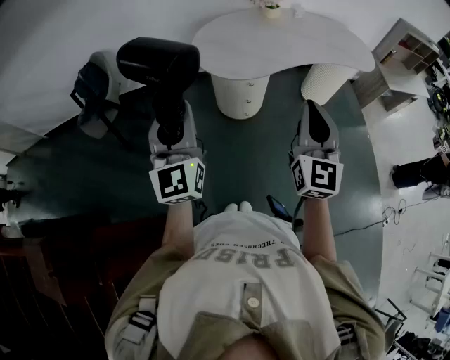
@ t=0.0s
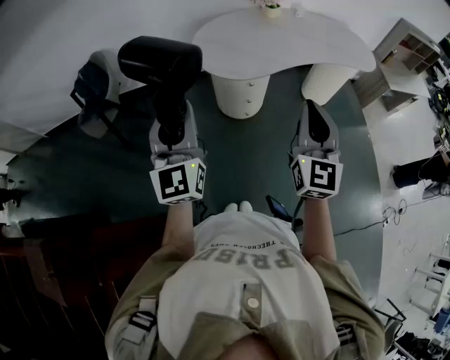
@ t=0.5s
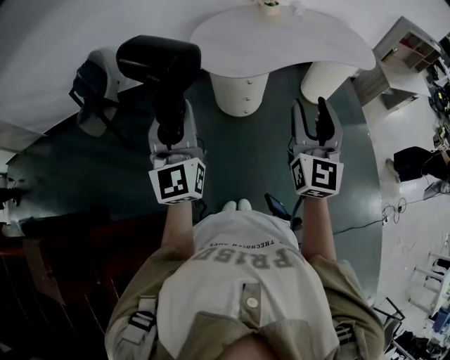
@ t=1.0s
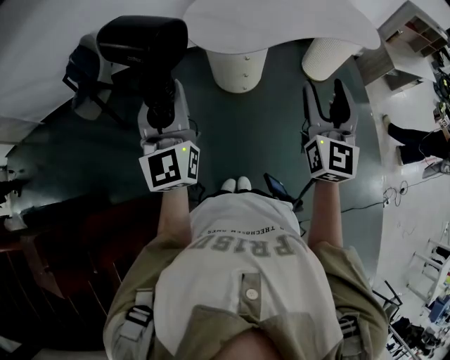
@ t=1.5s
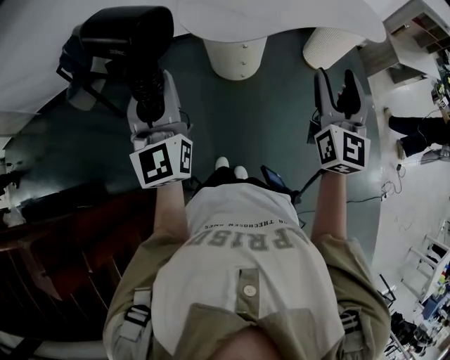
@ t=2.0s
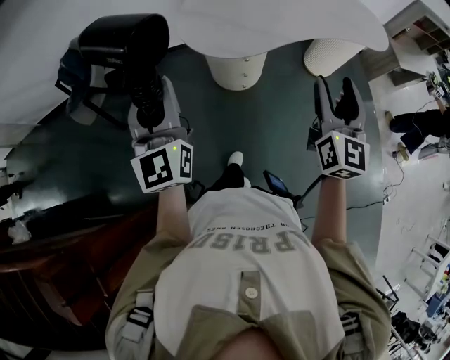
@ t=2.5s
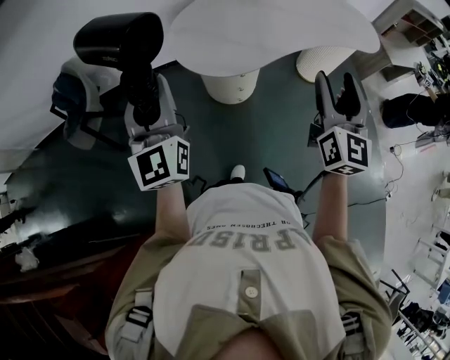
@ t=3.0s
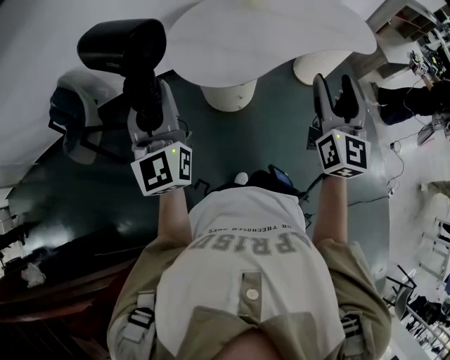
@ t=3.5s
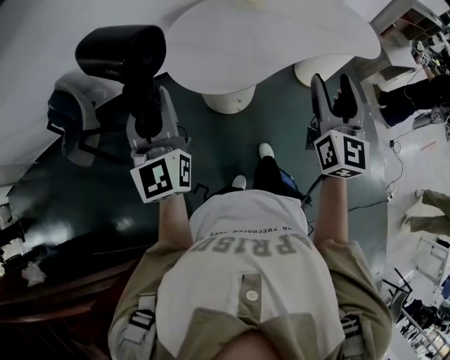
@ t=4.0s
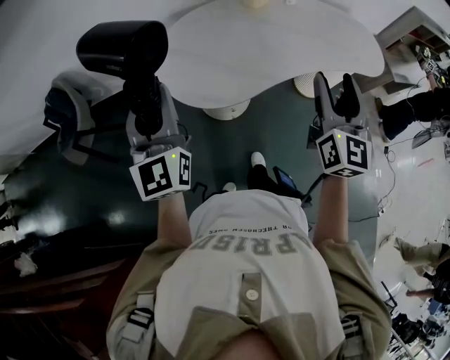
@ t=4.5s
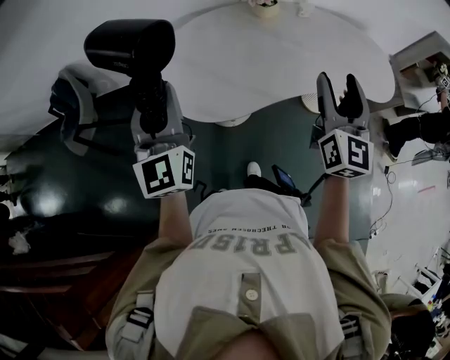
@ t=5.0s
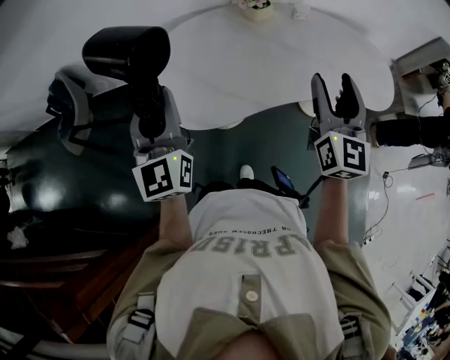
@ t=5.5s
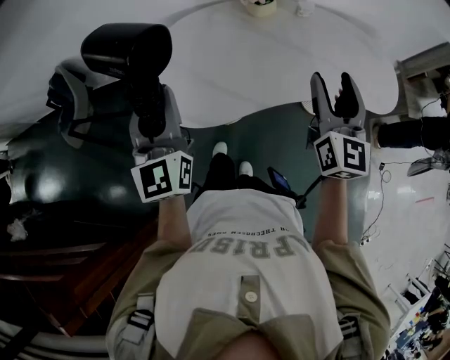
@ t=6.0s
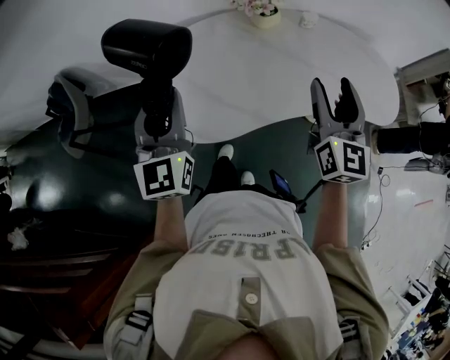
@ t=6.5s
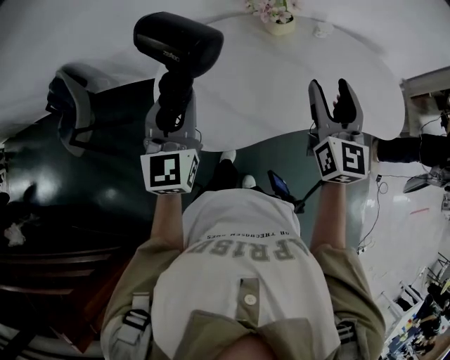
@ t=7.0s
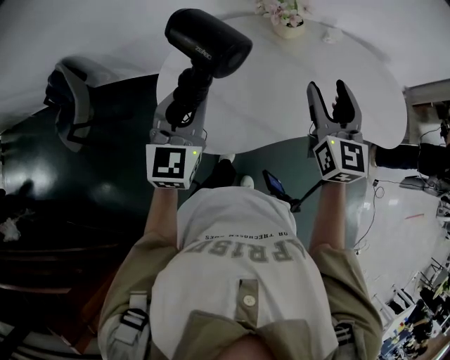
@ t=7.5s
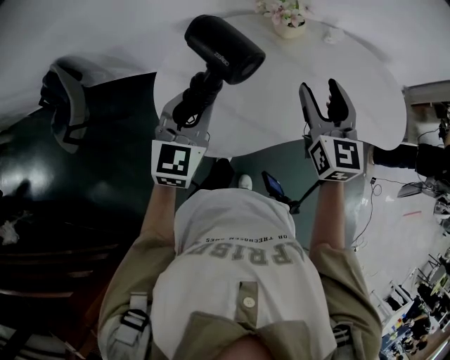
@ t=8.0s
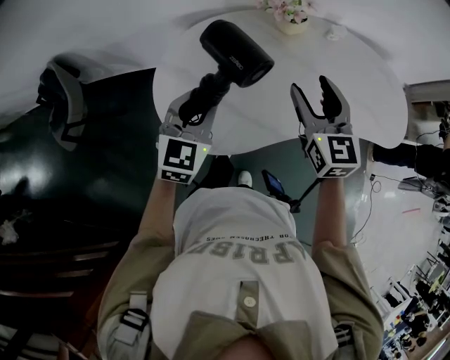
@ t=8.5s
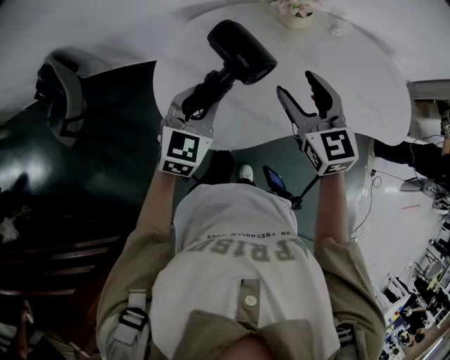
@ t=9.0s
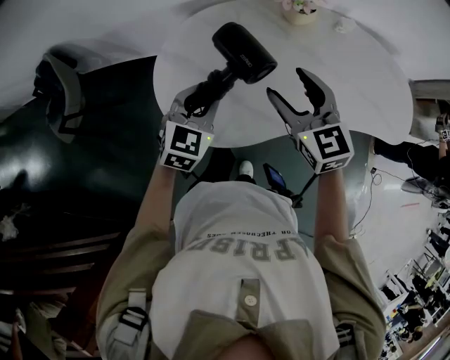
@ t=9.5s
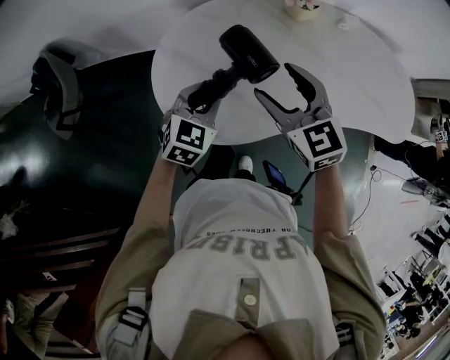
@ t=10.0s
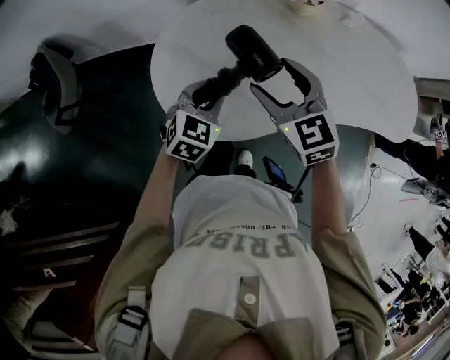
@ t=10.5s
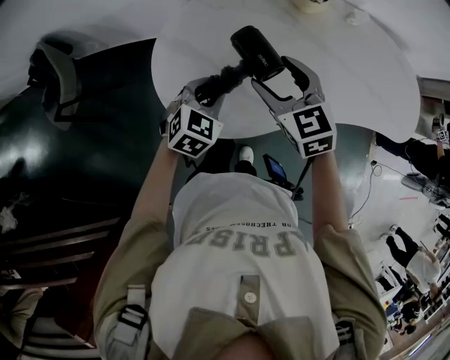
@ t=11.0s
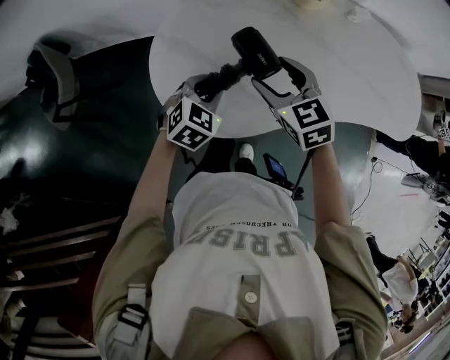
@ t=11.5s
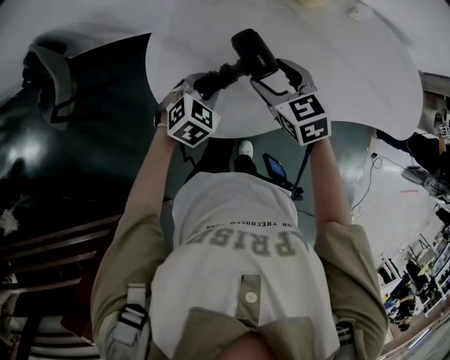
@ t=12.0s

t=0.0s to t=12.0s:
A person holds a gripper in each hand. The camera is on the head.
t=0.0s to t=2.0s: The right gripper goes about 10 cm to the right, and opens its fingers.
t=2.0s to t=4.0s: Both grippers travel together forward, roughly 20 cm.
t=4.0s to t=6.0s: The left gripper shifts approximately 20 cm to the right and forward. Meanwhile the right gripper is displaced forward and to the right by approximately 25 cm.
t=6.0s to t=8.0s: The left gripper heads forward and downward, covering about 15 cm, and turns by some 30 degrees; the right gripper shifts approximately 15 cm forward and to the left.
t=8.0s to t=10.0s: The right gripper goes about 15 cm to the left and downward, and rotates some 30 degrees, while the left gripper travels downward by roughly 15 cm, and changes its angle by about 20 degrees.
t=10.0s to t=12.0s: Both grippers move downward, approximately 10 cm.

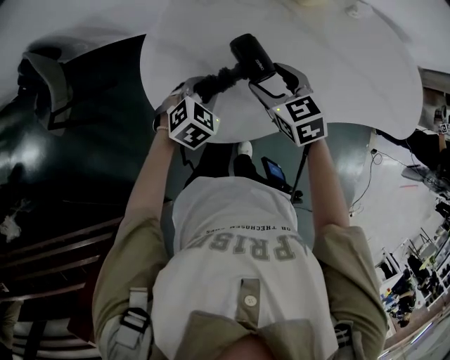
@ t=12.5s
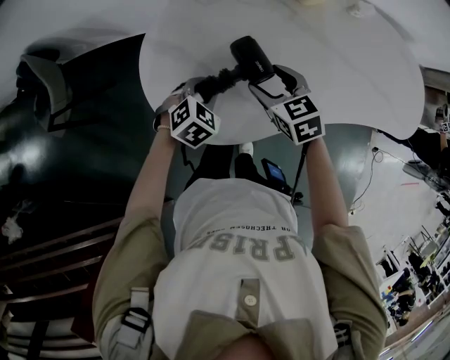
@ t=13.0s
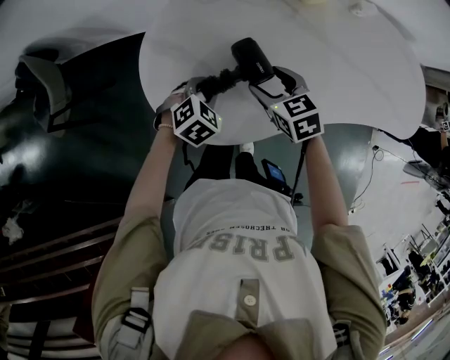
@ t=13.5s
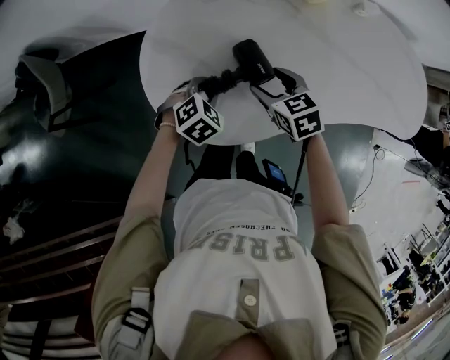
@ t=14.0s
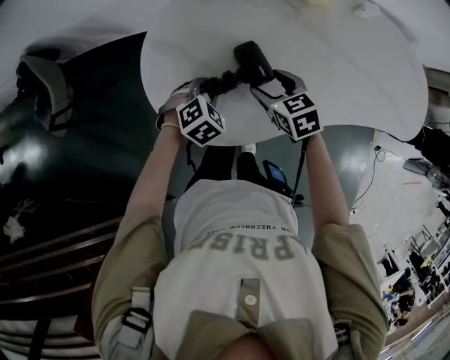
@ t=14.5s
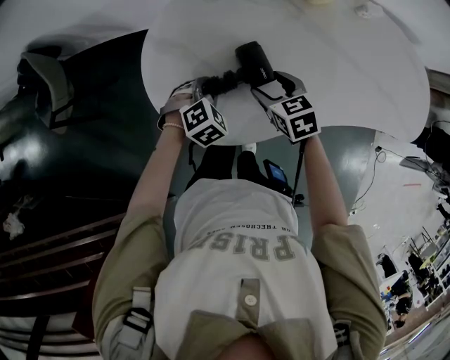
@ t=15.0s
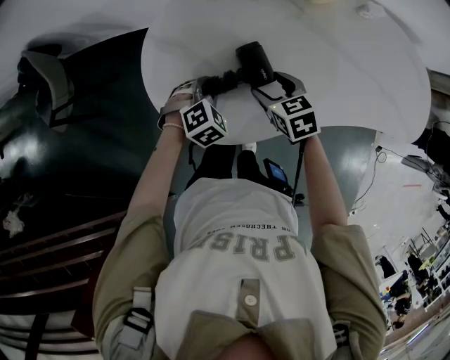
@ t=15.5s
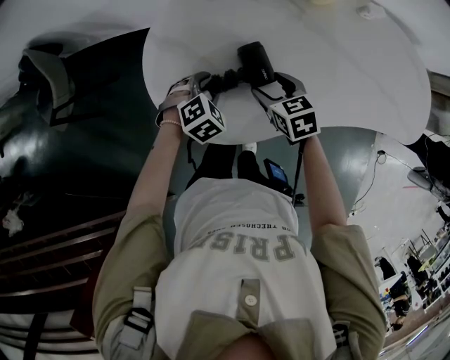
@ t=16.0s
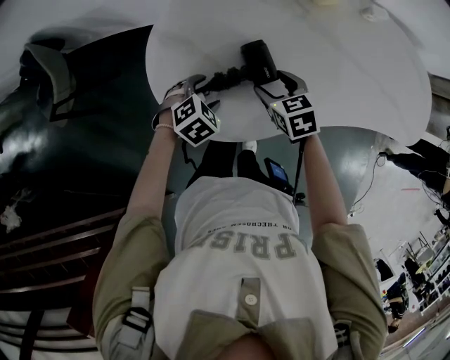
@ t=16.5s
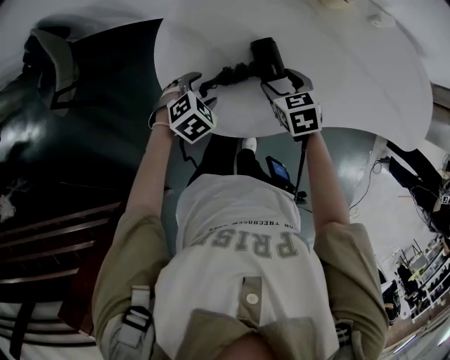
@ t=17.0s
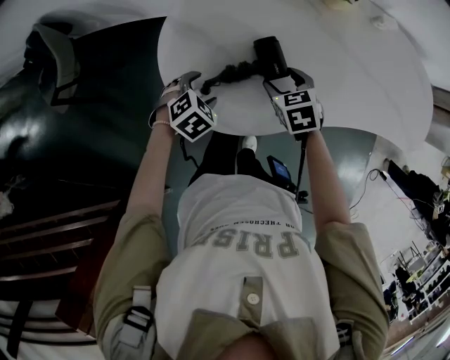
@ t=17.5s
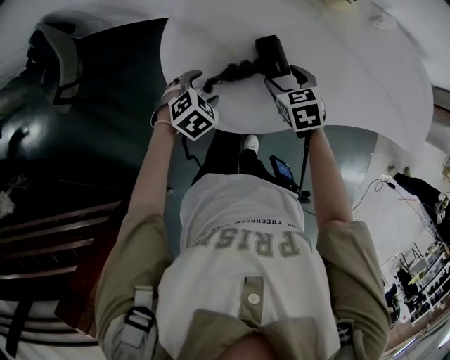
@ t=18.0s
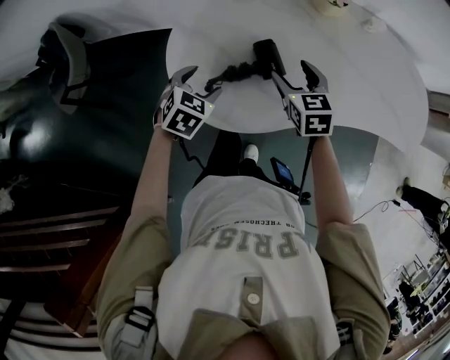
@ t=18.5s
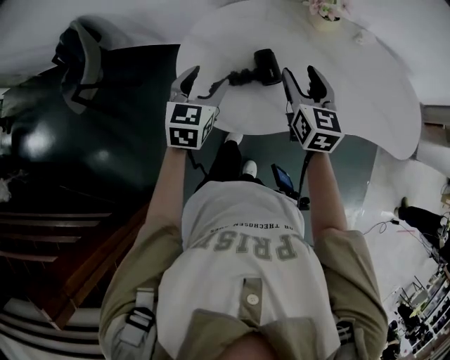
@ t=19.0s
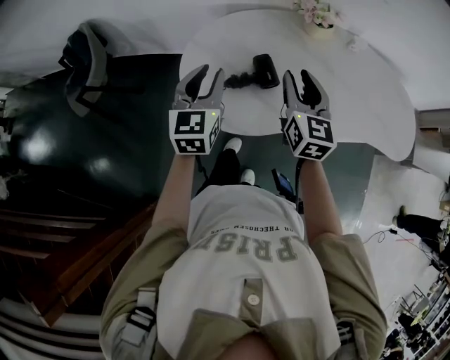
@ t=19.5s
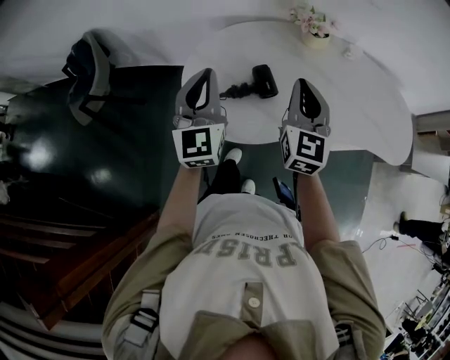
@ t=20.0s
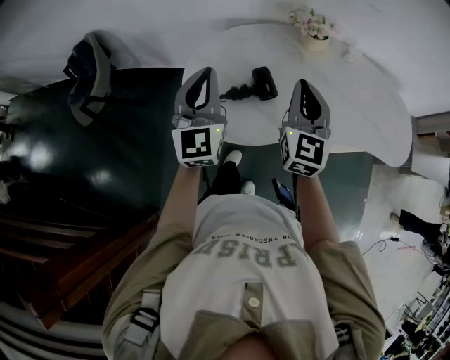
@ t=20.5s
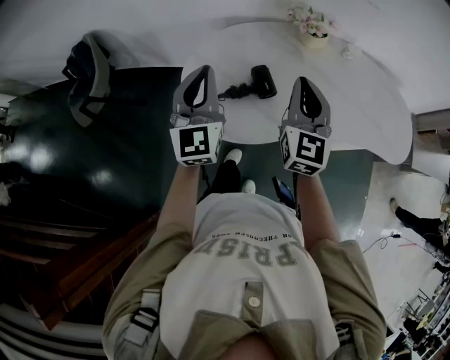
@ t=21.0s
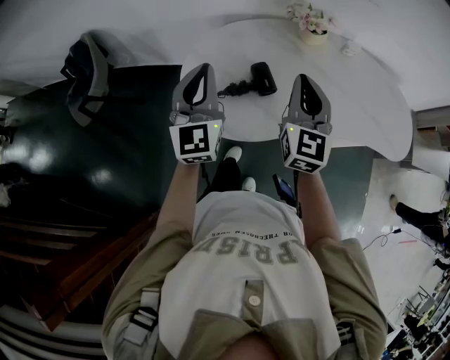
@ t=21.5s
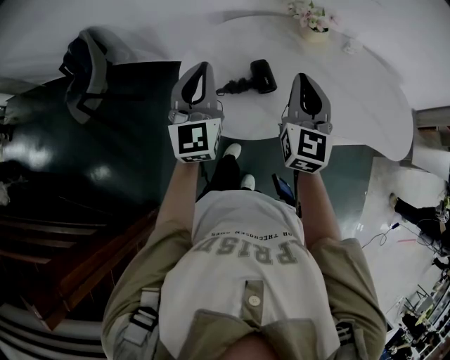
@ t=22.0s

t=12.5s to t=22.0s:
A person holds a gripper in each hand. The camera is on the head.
t=12.5s to t=14.5s: The right gripper travels downward by roughly 5 cm.
t=14.5s to t=16.5s: The left gripper opens up.
t=16.5s to t=18.0s: The grippers stay close to where they were, moving slightly.
t=18.0s to t=20.0s: The grippers both shift upward by some 30 cm. The right gripper tips its fingers upward by approximately 50 degrees, and closes its fingers; the left gripper points its fingers roughly 70 degrees further upward, and closes.
t=20.0s to t=22.0s: The grippers stay close to where they were, moving slightly.

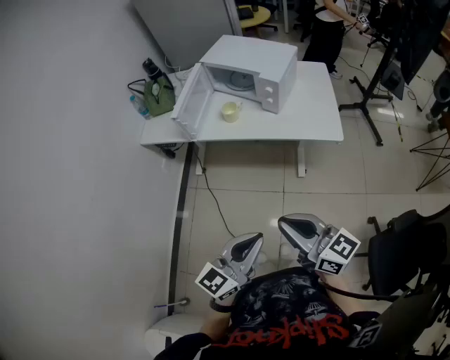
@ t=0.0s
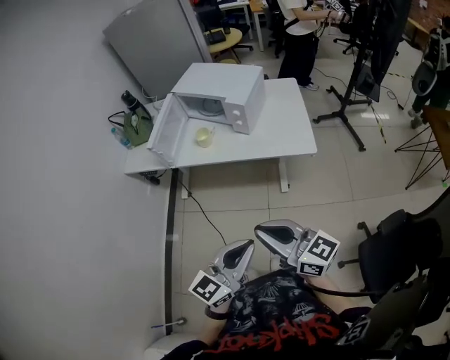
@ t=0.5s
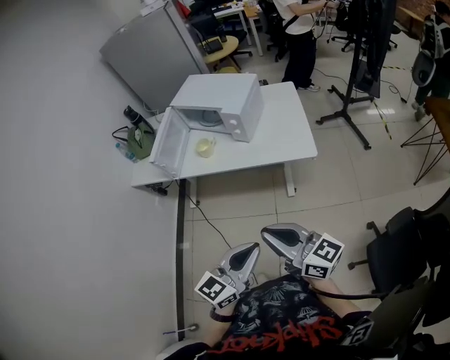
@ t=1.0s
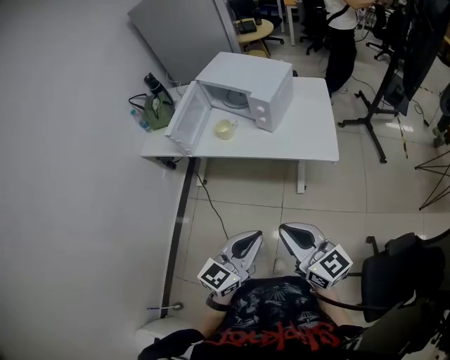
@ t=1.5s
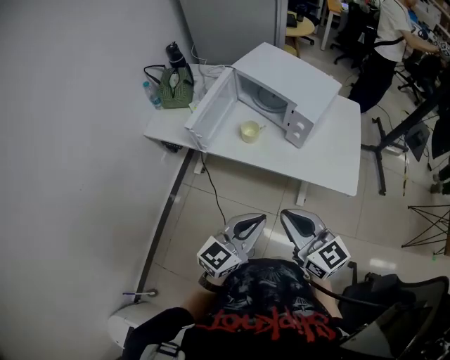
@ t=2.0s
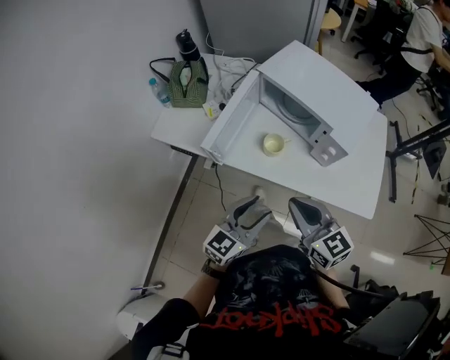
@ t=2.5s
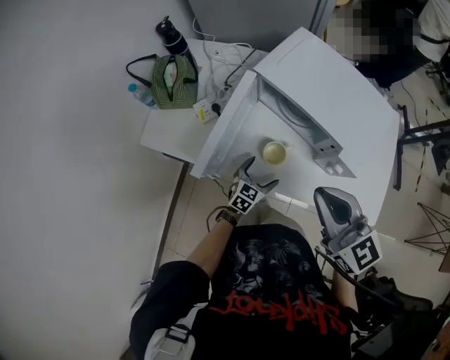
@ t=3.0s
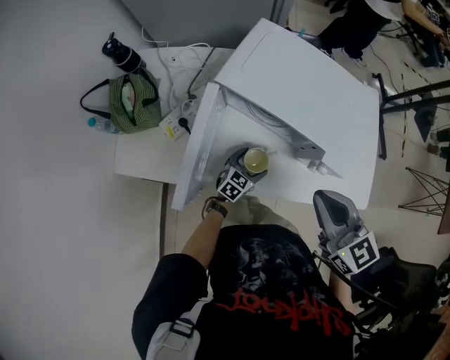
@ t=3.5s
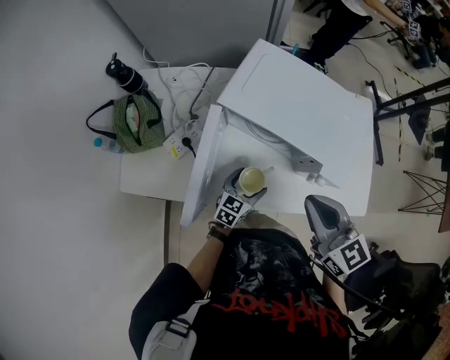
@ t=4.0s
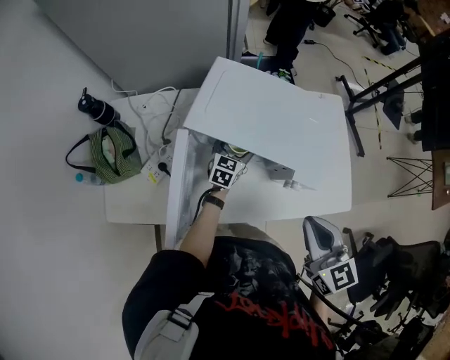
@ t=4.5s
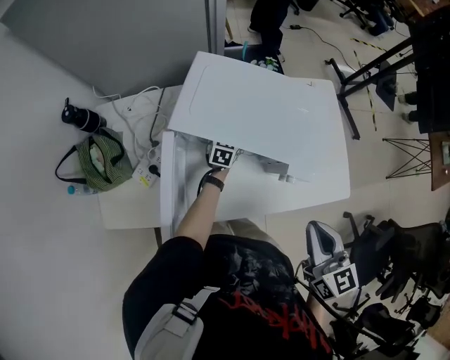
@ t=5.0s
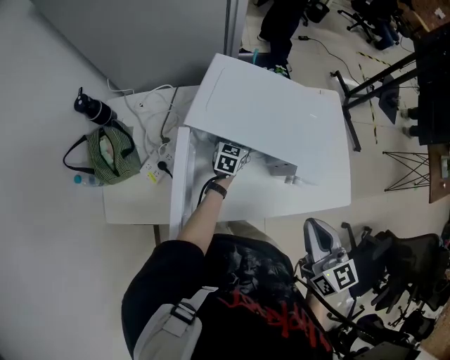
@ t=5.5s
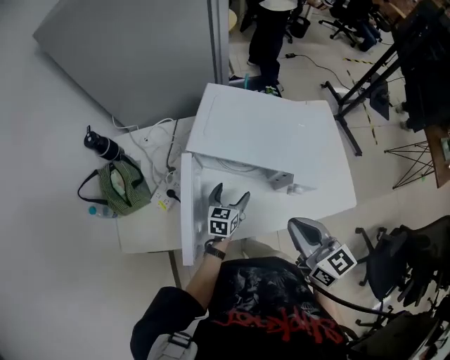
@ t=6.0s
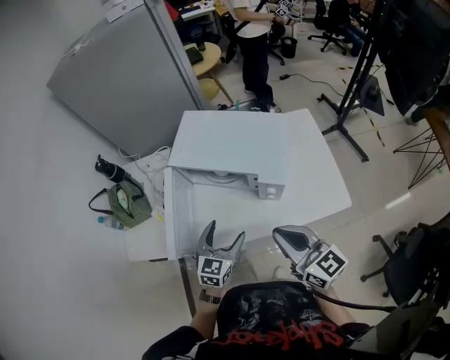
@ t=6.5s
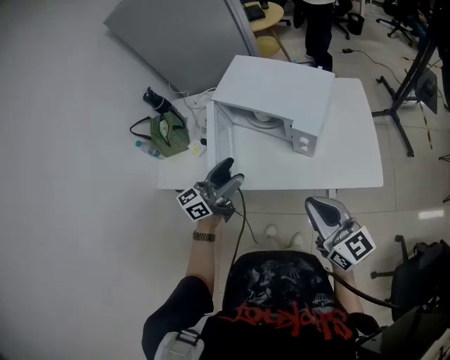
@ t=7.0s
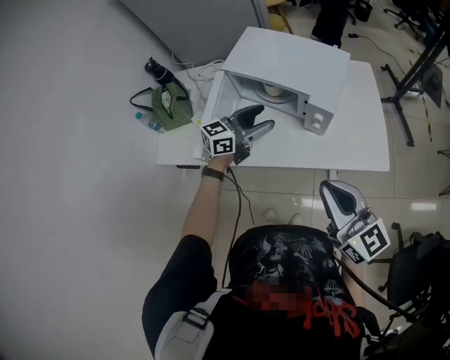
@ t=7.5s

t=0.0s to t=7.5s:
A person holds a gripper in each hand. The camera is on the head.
t=0.0s to t=2.0s: Both grippers travel together forward, approximately 20 cm.
t=2.0s to t=4.0s: The right gripper travels forward by approximately 35 cm, and swivels roughly 20 degrees; the left gripper shifts approximately 50 cm forward and downward, rotates about 30 degrees, and opens its fingers.
t=4.0s to t=5.5s: The left gripper moves forward, approximately 20 cm, while the right gripper goes about 5 cm to the right, and changes its angle by approximately 20 degrees.
t=5.5s to t=7.5s: The left gripper travels backward and upward by roughly 35 cm, and swivels some 30 degrees, while the right gripper is displaced backward by approximately 15 cm, and rotates roughly 30 degrees.
